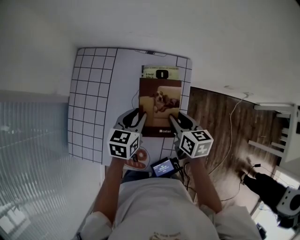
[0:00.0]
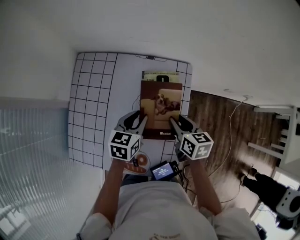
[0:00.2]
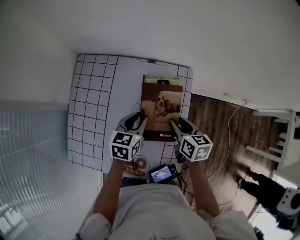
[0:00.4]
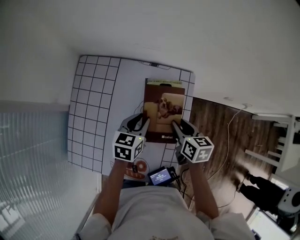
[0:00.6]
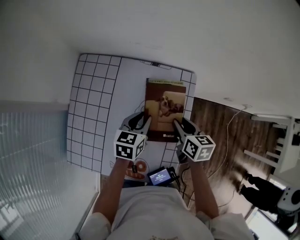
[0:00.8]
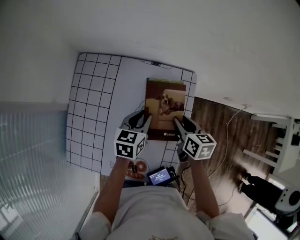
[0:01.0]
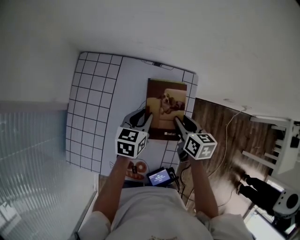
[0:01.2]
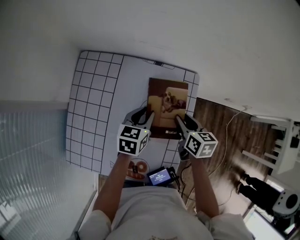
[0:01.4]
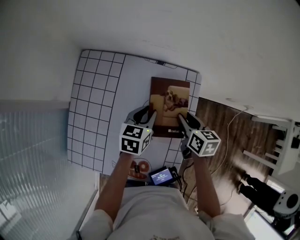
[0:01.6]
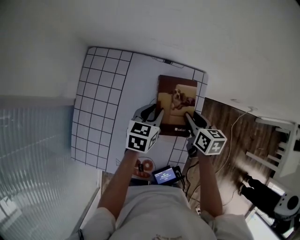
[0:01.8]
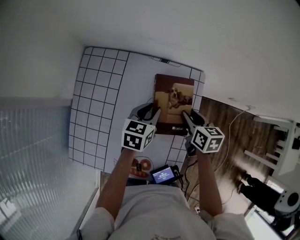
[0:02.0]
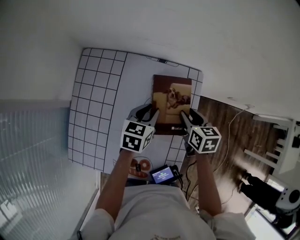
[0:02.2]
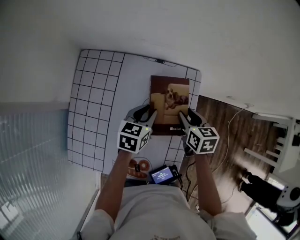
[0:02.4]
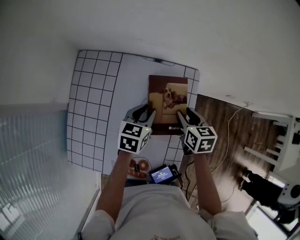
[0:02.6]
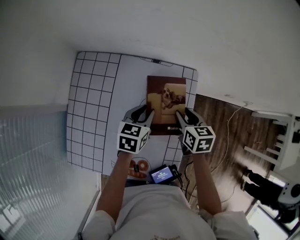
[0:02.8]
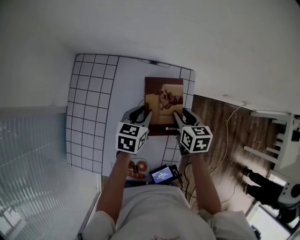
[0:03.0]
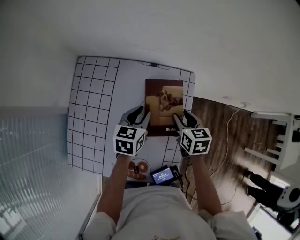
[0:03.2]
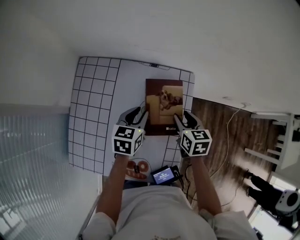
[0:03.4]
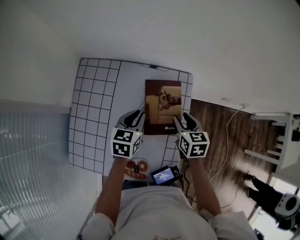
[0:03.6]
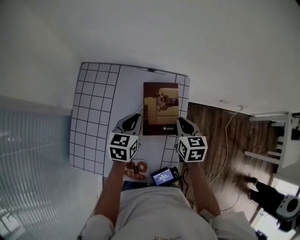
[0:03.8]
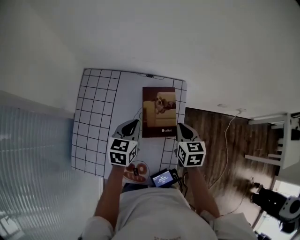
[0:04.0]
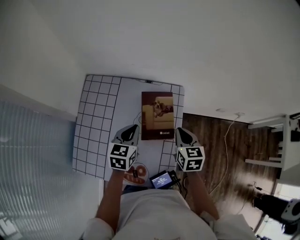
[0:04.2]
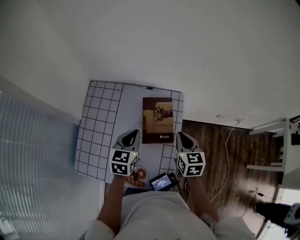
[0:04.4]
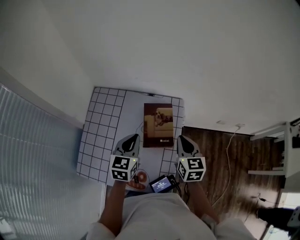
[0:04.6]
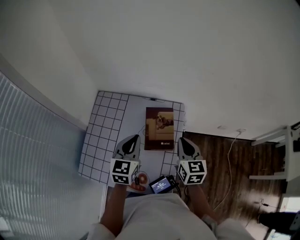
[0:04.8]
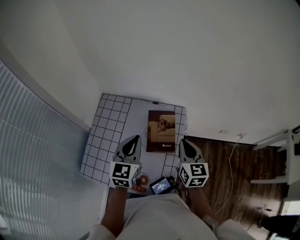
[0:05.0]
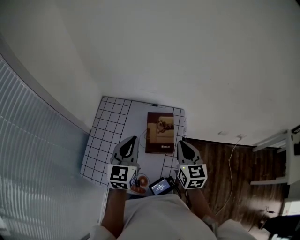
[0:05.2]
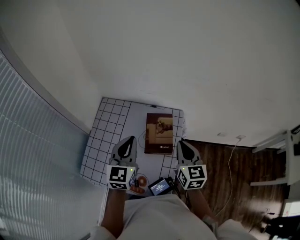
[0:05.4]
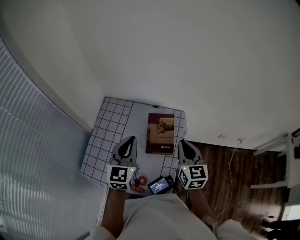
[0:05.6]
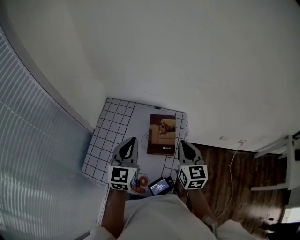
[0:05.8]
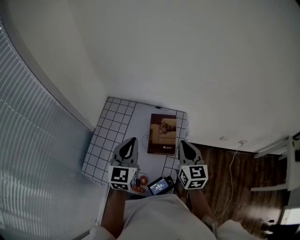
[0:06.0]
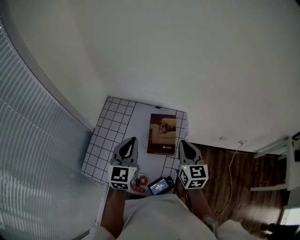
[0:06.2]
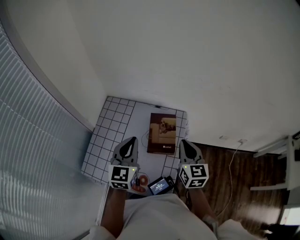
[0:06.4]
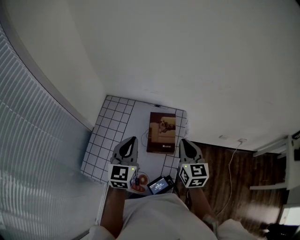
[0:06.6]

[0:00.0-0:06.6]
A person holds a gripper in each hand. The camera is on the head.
0:00.0 to 0:01.6: Both grippers move forward, roughly 5 cm.
0:01.6 to 0:03.2: The grippers make only small movements.
0:03.2 to 0:05.0: The grippers both shift upward and backward by approximately 20 cm. The right gripper changes its angle by roughly 30 degrees, and closes its fingers. Meanwhile the left gripper swivels about 30 degrees, and closes its fingers.
0:05.0 to 0:06.6: There are only small adjustments of the grippers.

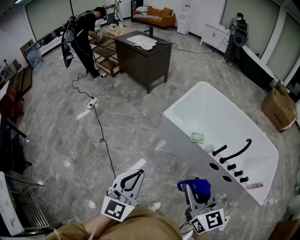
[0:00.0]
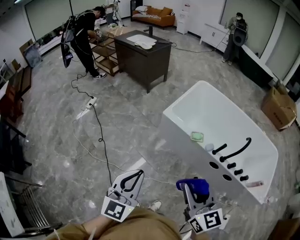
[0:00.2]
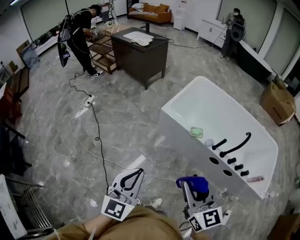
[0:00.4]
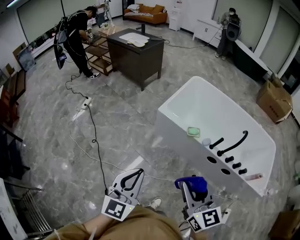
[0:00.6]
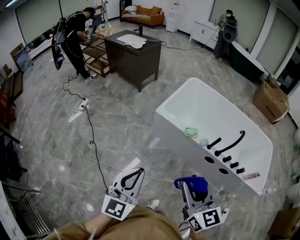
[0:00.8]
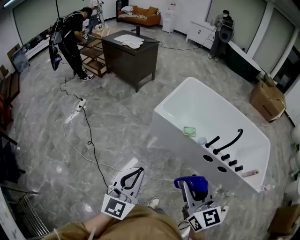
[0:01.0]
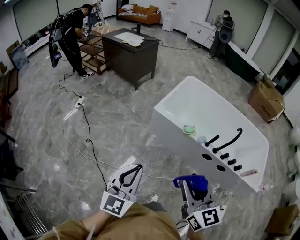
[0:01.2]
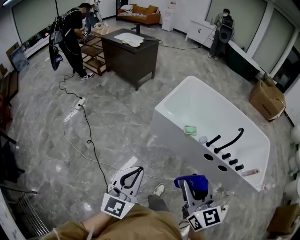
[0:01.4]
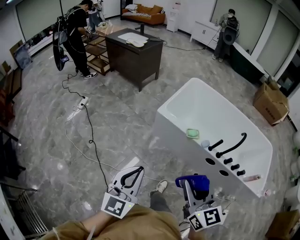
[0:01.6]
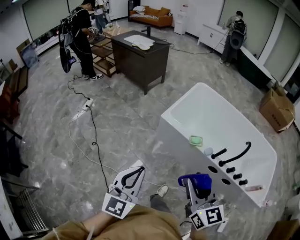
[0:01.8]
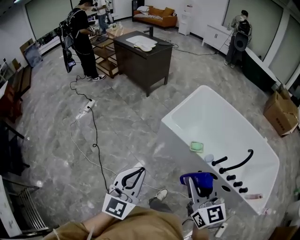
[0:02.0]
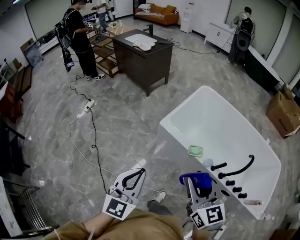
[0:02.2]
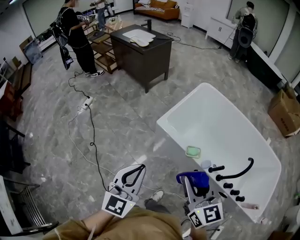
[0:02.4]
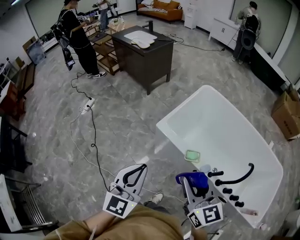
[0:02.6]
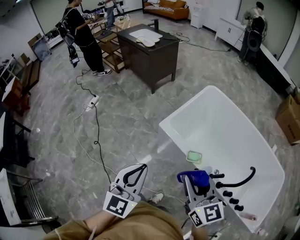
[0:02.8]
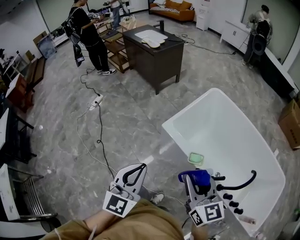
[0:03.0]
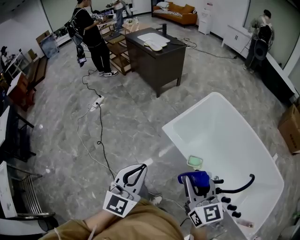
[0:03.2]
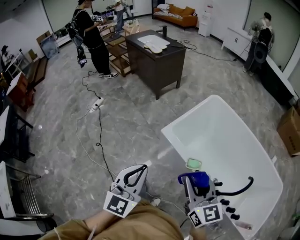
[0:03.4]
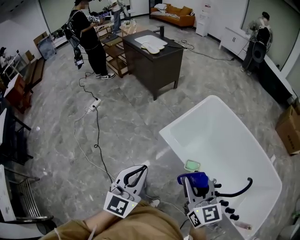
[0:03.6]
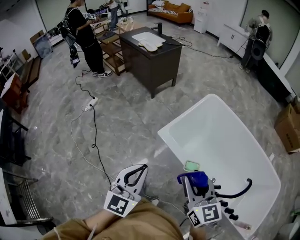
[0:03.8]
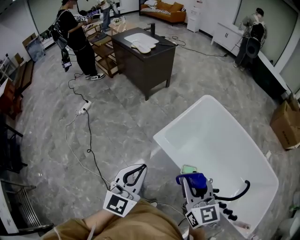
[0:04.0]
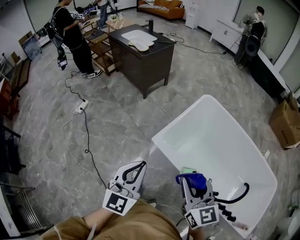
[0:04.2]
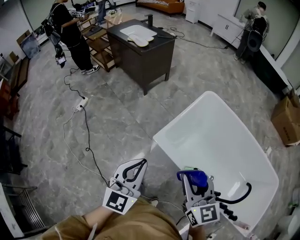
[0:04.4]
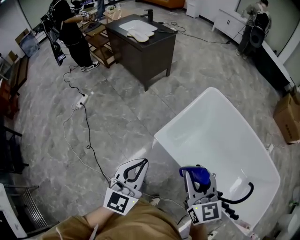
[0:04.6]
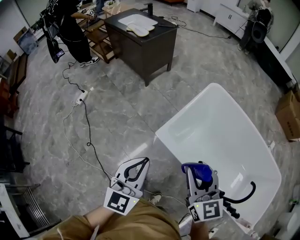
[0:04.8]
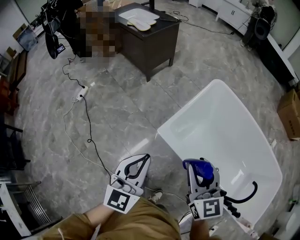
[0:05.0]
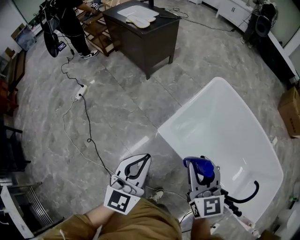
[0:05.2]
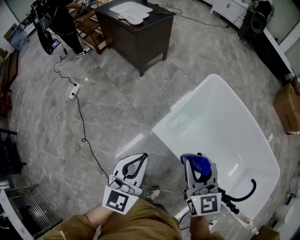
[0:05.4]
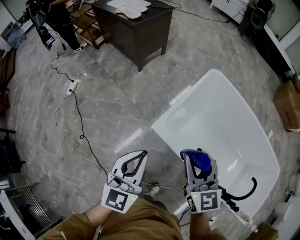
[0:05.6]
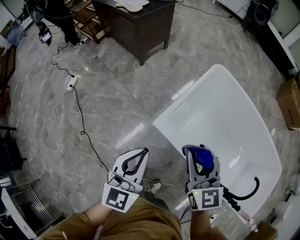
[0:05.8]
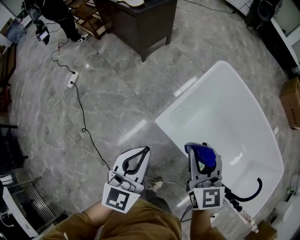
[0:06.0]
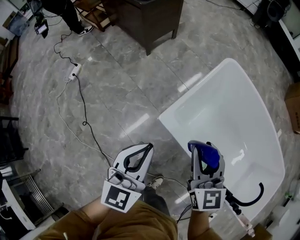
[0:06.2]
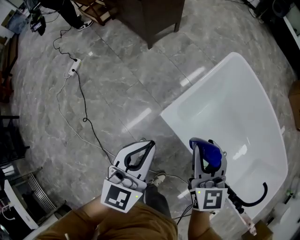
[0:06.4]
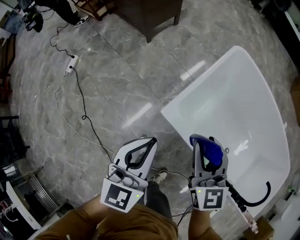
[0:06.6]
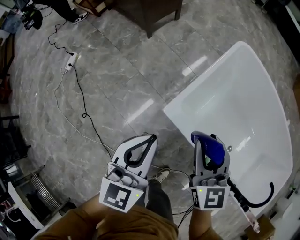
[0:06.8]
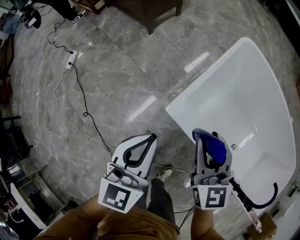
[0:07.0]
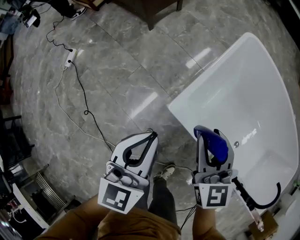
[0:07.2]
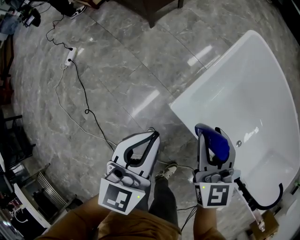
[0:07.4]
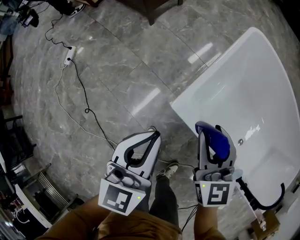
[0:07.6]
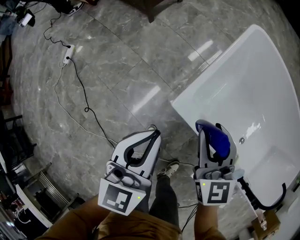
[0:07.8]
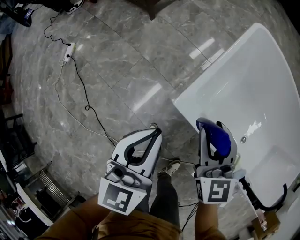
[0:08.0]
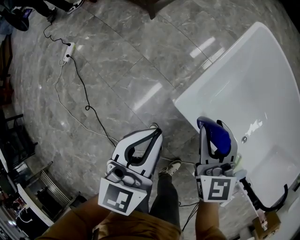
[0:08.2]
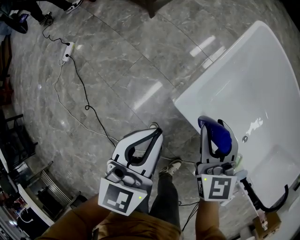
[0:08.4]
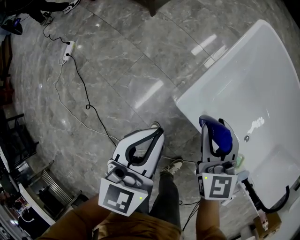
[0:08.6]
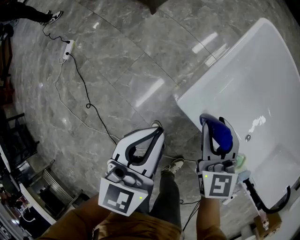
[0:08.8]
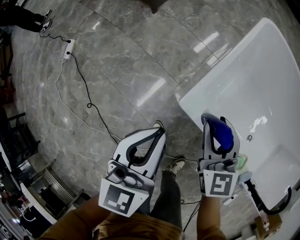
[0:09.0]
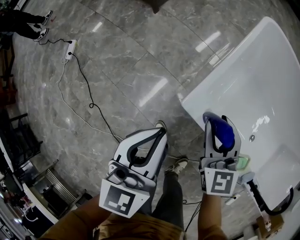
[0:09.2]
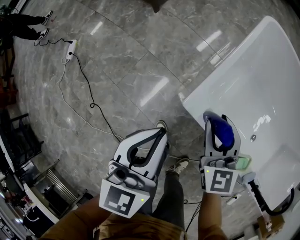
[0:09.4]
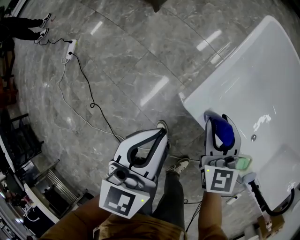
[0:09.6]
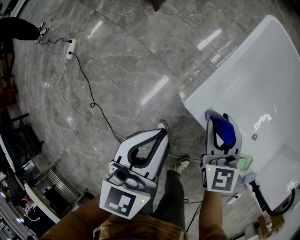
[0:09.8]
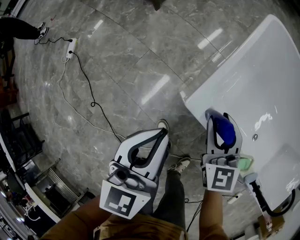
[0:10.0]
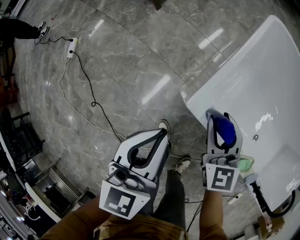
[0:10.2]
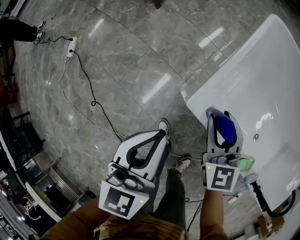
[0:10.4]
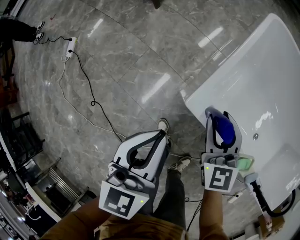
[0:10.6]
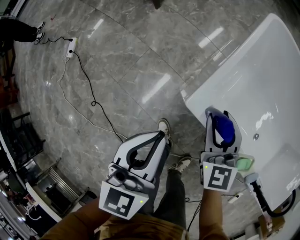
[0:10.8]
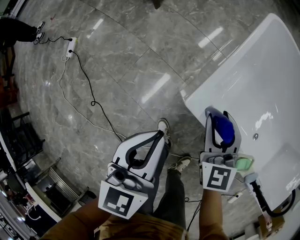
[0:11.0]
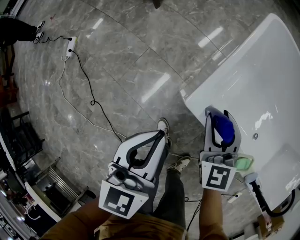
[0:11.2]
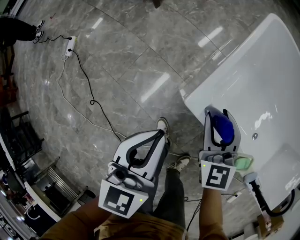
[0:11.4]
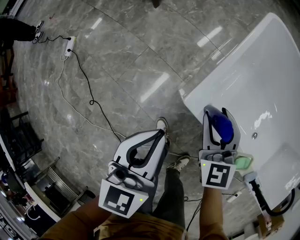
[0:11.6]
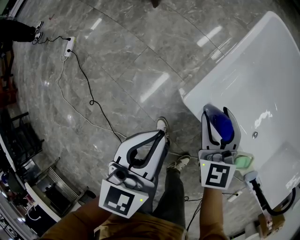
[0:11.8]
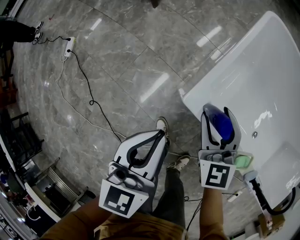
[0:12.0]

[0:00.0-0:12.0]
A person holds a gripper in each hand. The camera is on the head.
0:00.0 to 0:01.6: The grippers move only a little.
0:01.6 to 0:03.0: Both grippers travel together forward and to the right, roughly 25 cm.
0:03.0 to 0:04.4: The grippers both shift forward by approximately 15 cm.
0:04.4 to 0:06.0: The left gripper is displaced downward and forward by about 15 cm. Meanwhile the right gripper is displaced forward and downward by about 15 cm.
0:06.0 to 0:07.6: Both grippers move downward and forward, some 15 cm.
0:07.6 to 0:09.0: The left gripper shifts by roughly 5 cm, while the right gripper is displaced downward by approximately 10 cm.
0:09.0 to 0:12.0: There are only small adjustments of the grippers.

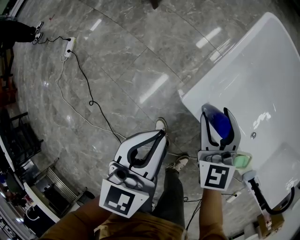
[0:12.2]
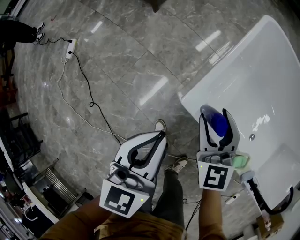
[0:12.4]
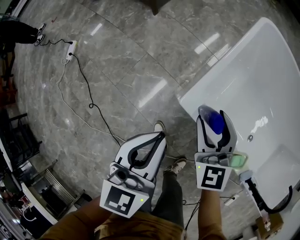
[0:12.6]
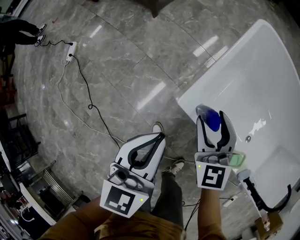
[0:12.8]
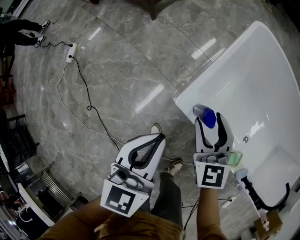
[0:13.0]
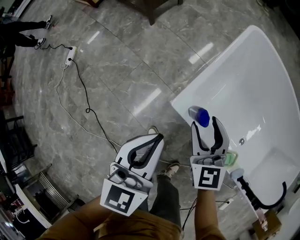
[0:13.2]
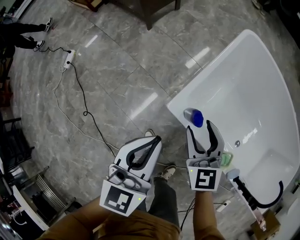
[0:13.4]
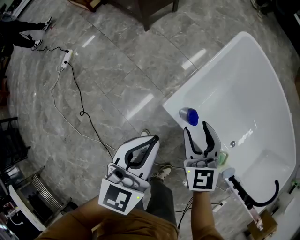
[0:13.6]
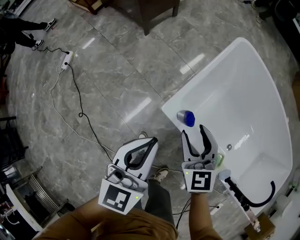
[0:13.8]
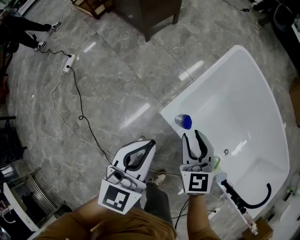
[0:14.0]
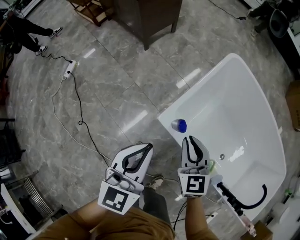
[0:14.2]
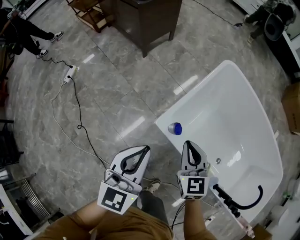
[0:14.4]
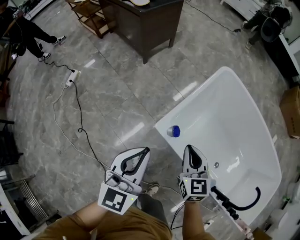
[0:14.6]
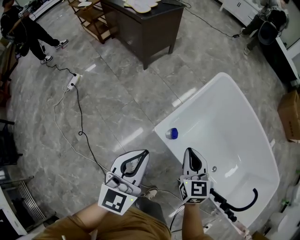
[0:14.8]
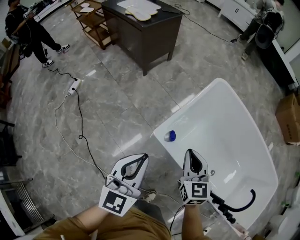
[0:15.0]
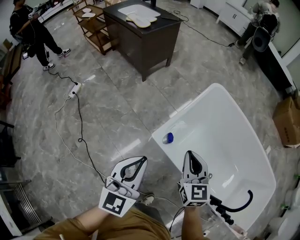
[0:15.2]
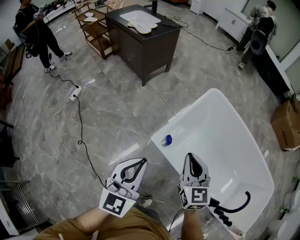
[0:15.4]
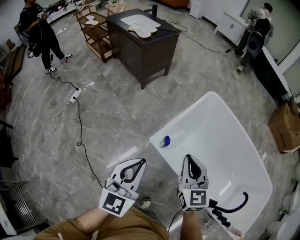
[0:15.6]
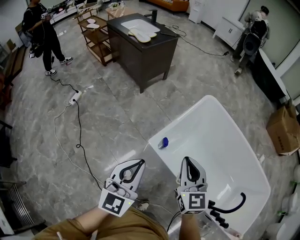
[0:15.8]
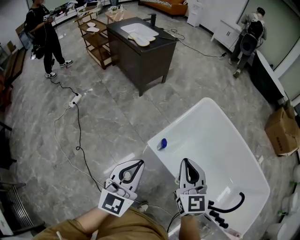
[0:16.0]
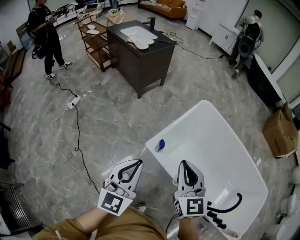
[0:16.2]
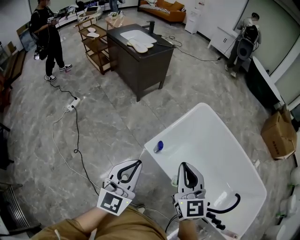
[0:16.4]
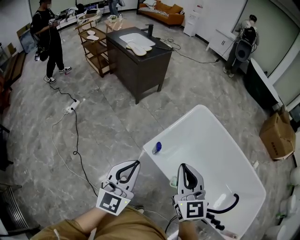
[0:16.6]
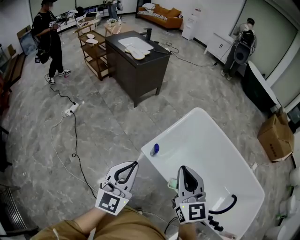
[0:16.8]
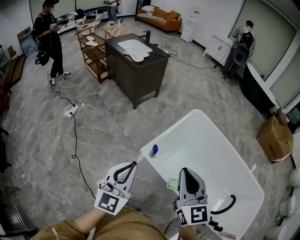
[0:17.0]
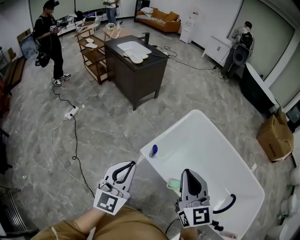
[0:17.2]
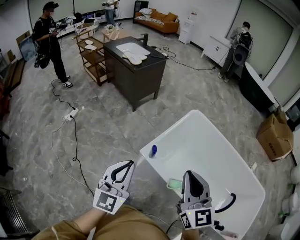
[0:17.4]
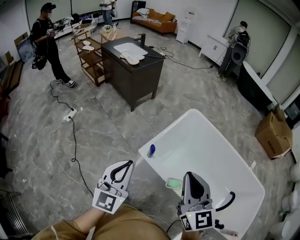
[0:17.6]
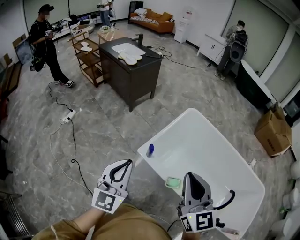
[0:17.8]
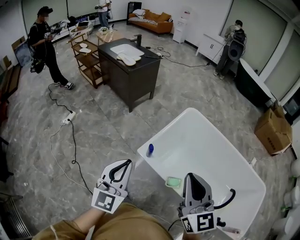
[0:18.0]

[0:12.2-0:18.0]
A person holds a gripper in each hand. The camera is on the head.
0:12.2 to 0:13.6: Both grippers travel together upward, roughly 5 cm.
0:13.6 to 0:15.0: The left gripper is displaced upward and backward by roughly 15 cm. The right gripper travels upward by some 15 cm, and closes its fingers.
0:15.0 to 0:16.6: The right gripper moves upward and backward, about 20 cm. Meanwhile the left gripper moves upward and backward, approximately 15 cm.
0:16.6 to 0:18.0: The right gripper goes some 10 cm upward, backward and to the right.
